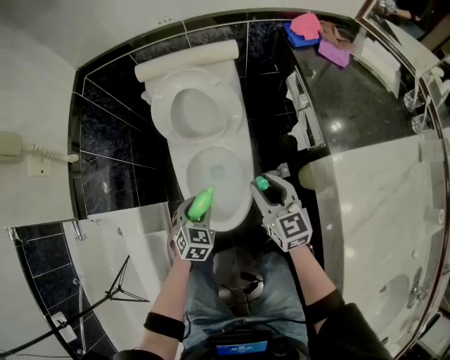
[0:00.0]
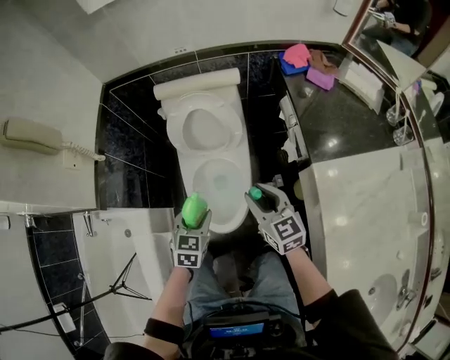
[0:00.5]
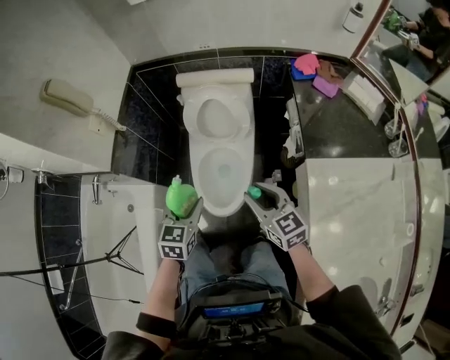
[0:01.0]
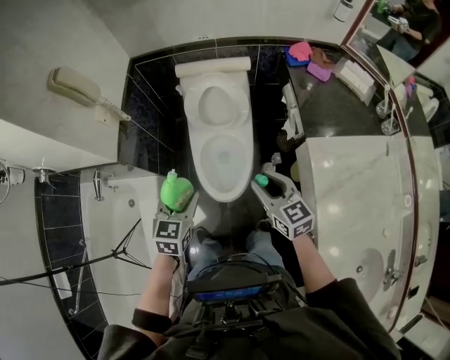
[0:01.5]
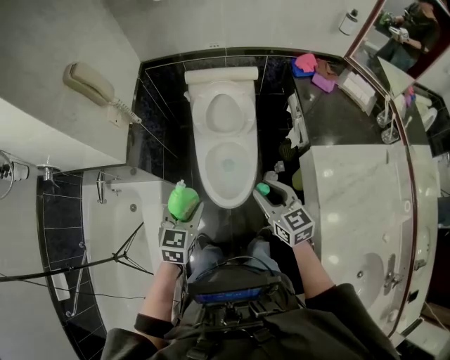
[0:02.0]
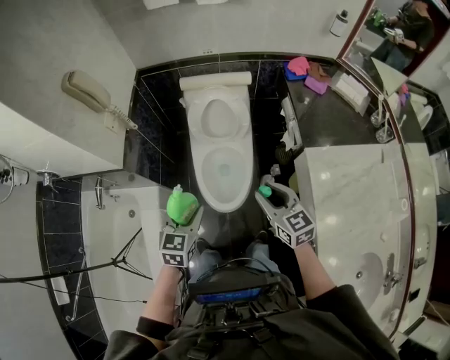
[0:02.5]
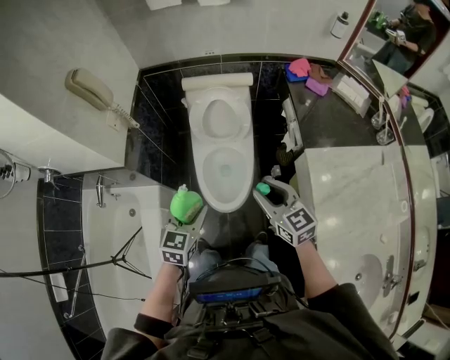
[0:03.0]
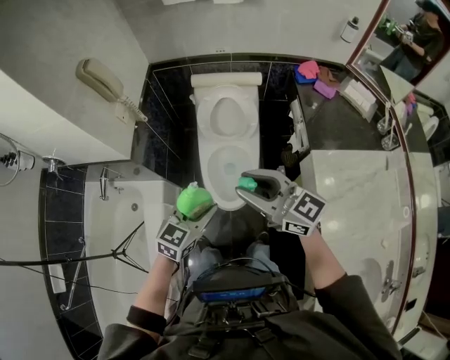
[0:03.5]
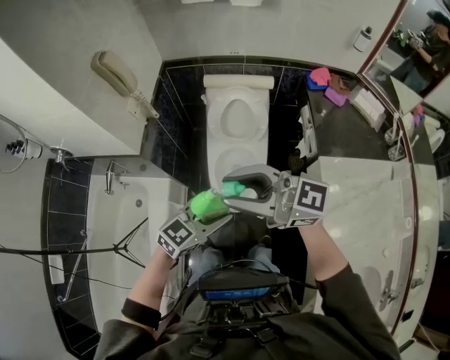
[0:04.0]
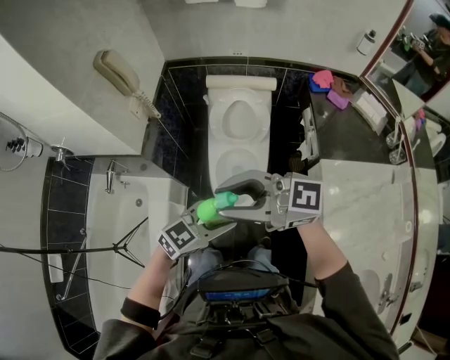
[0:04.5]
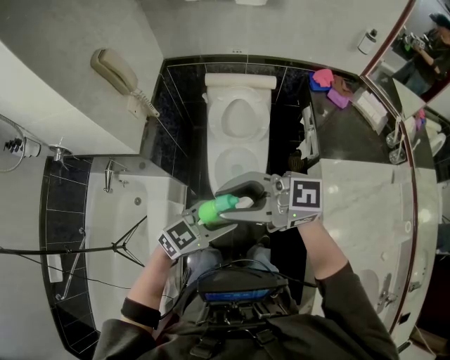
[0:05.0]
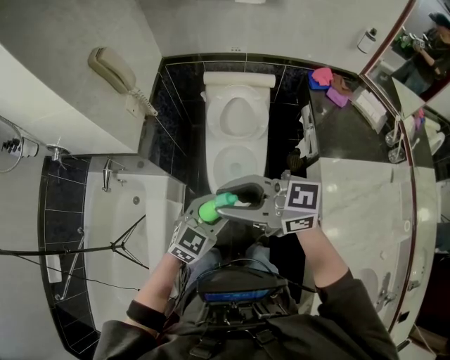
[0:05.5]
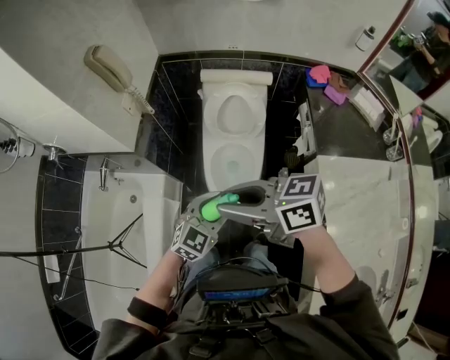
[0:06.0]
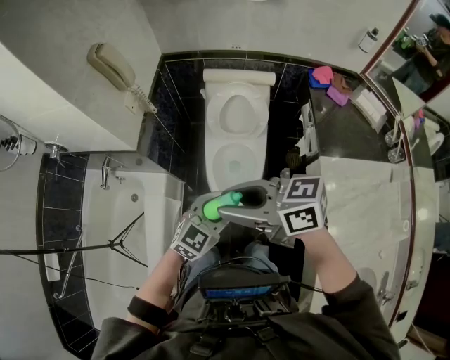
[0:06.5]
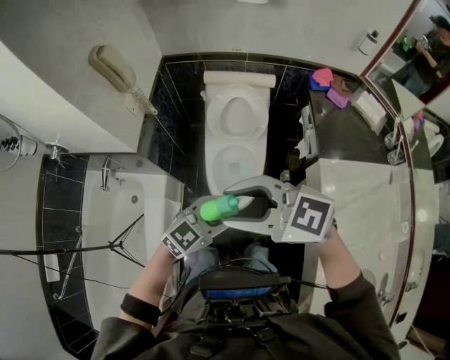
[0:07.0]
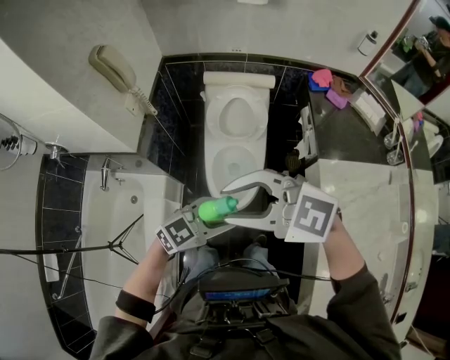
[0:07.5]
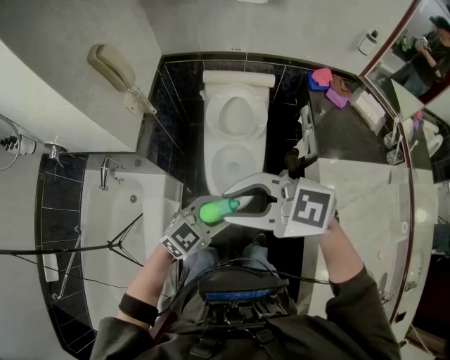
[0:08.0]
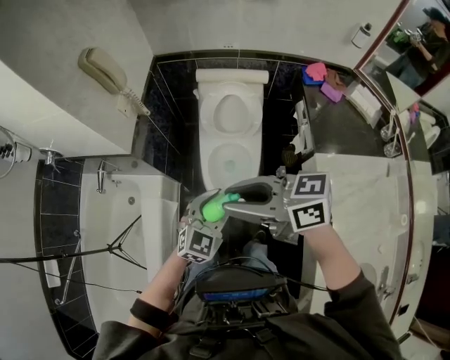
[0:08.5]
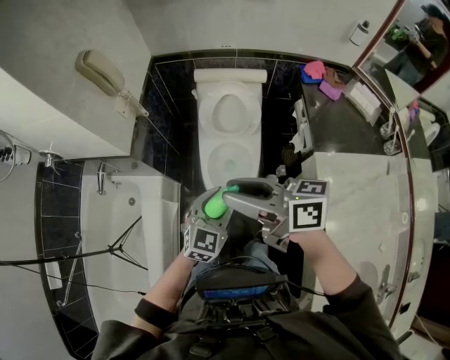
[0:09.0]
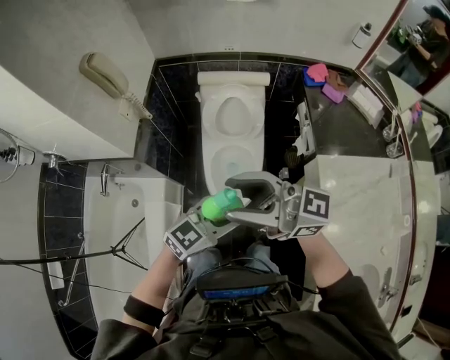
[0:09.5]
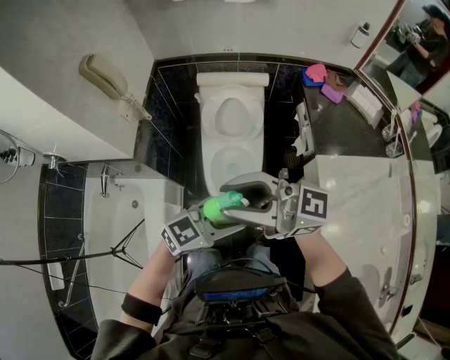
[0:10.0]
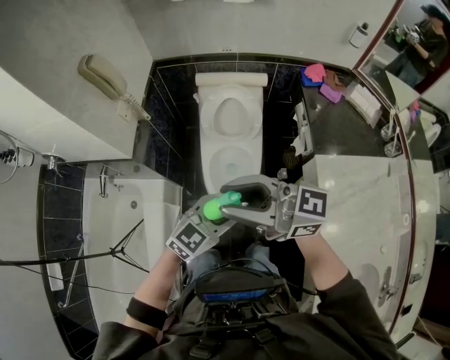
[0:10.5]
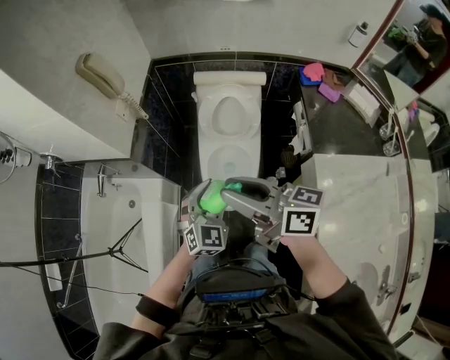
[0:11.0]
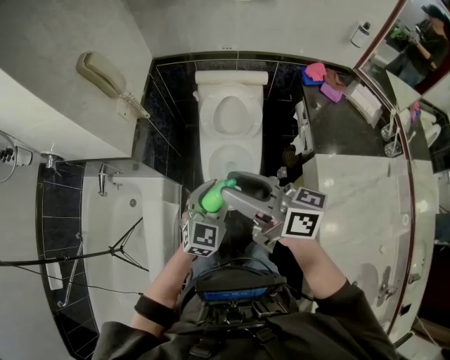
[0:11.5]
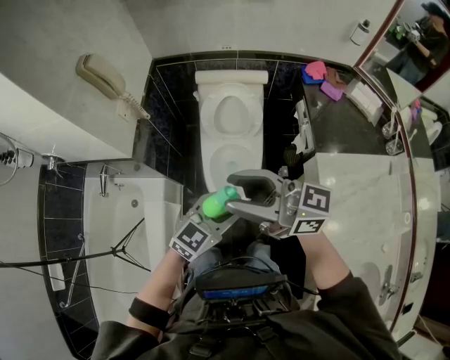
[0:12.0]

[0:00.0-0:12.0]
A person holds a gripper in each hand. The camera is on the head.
0:00.0 to 0:02.0: The two grippers go roughly 30 cm upward and backward. The left gripper rotates about 20 degrees.
0:02.0 to 0:04.0: The right gripper is displaced upward by some 20 cm, and tilts its fingers about 30 degrees upward; the left gripper moves roughly 10 cm, and swivels approximately 30 degrees.
0:04.0 to 0:06.0: The left gripper ends up approximately 5 cm from where it was, while the right gripper moves downward, some 5 cm, and turns by roughly 40 degrees.
0:06.0 to 0:08.0: The right gripper rotates roughly 40 degrees.
0:08.0 to 0:10.0: The right gripper moves approximately 5 cm, and points its fingers roughly 40 degrees further upward. The left gripper moves roughly 5 cm.

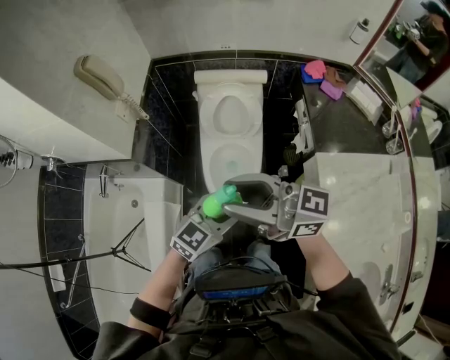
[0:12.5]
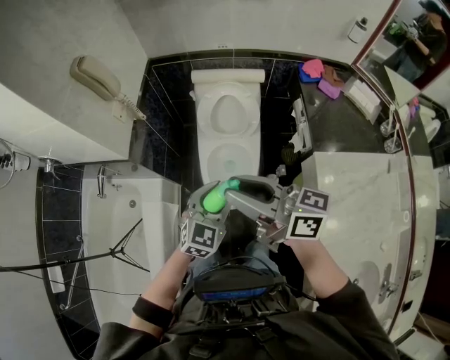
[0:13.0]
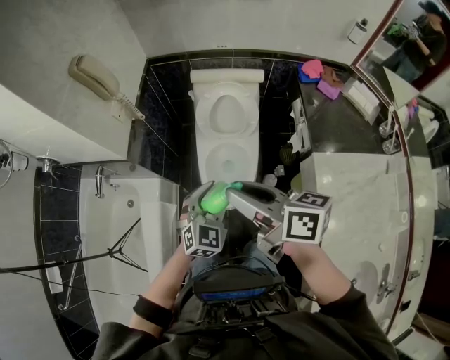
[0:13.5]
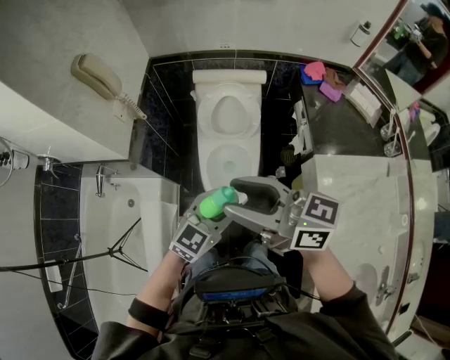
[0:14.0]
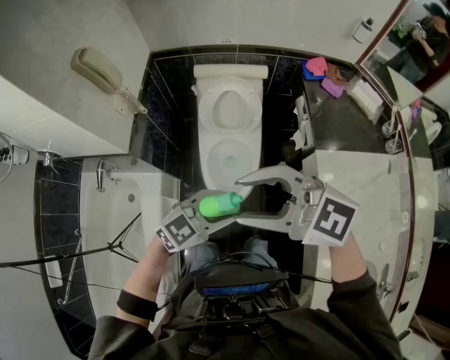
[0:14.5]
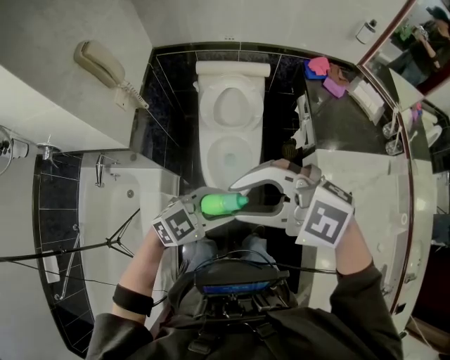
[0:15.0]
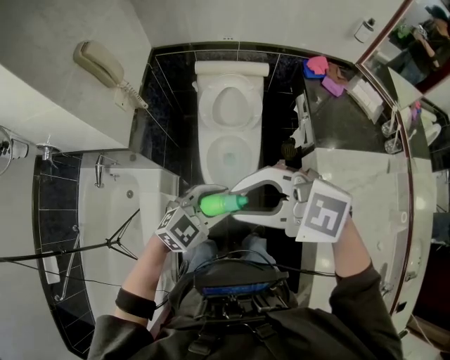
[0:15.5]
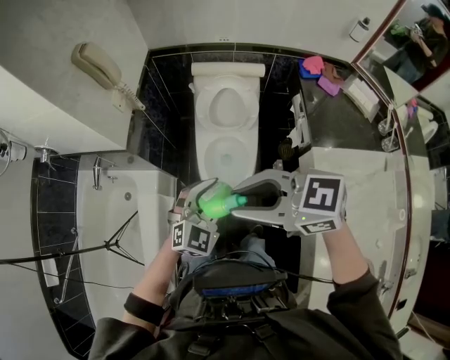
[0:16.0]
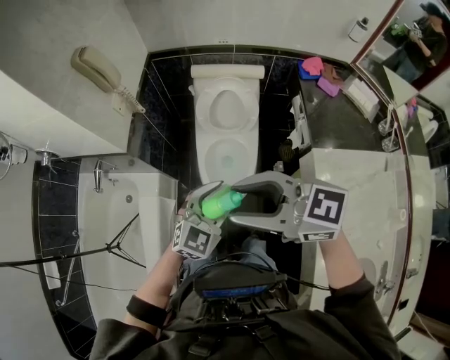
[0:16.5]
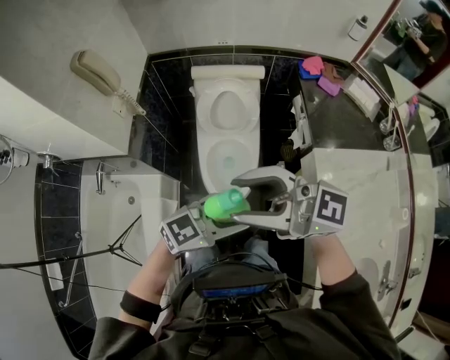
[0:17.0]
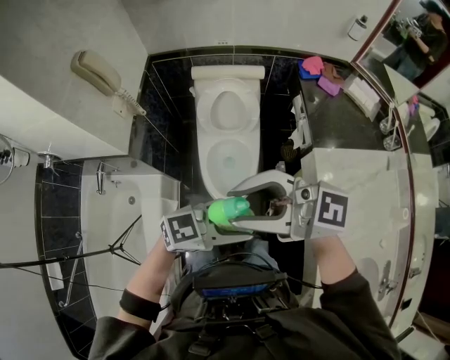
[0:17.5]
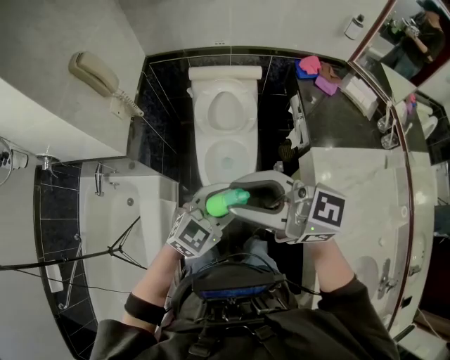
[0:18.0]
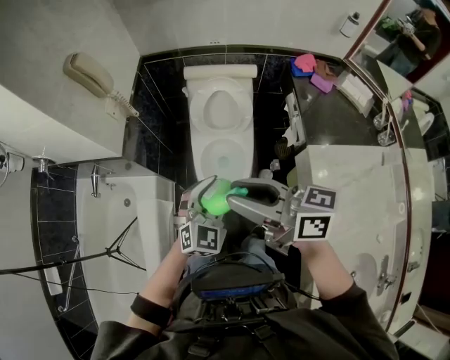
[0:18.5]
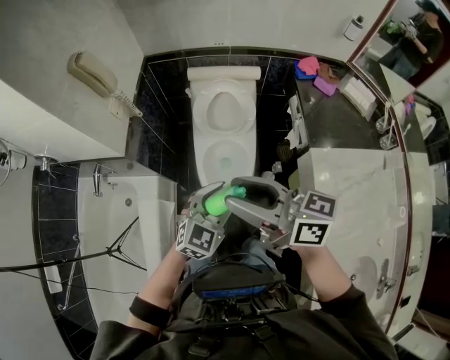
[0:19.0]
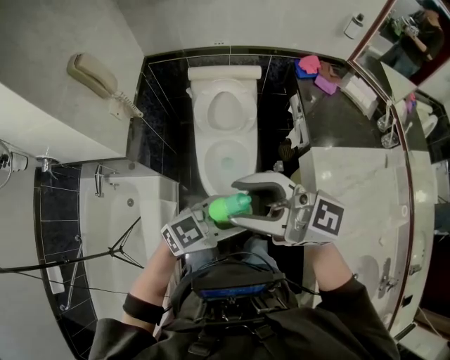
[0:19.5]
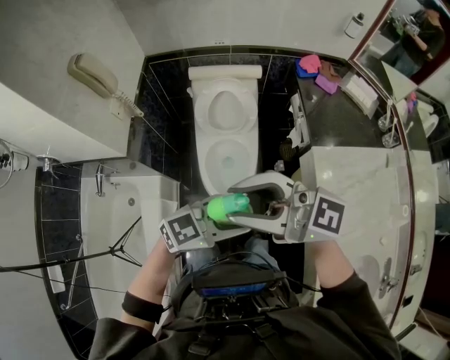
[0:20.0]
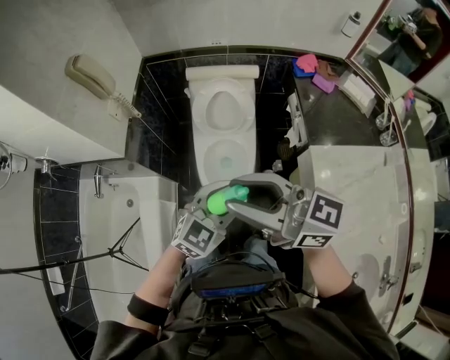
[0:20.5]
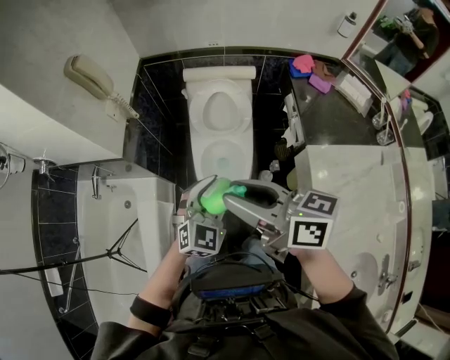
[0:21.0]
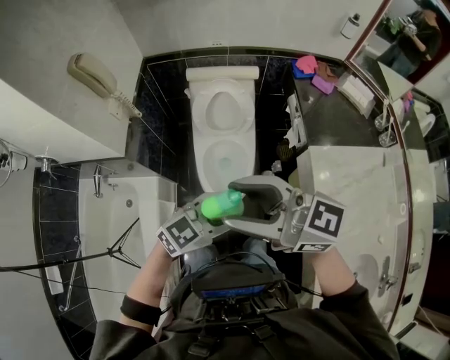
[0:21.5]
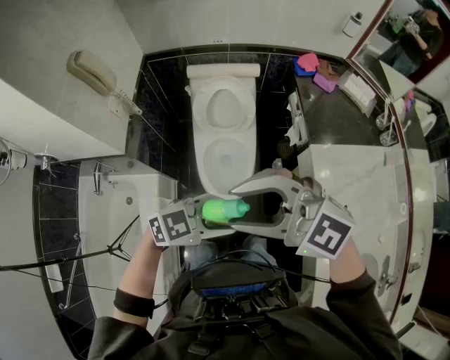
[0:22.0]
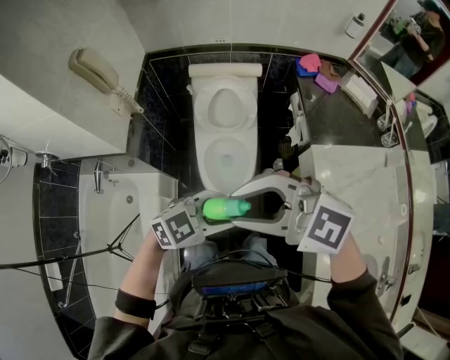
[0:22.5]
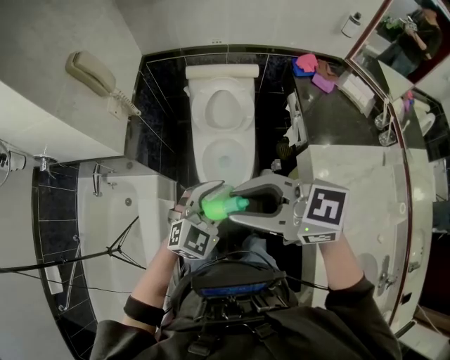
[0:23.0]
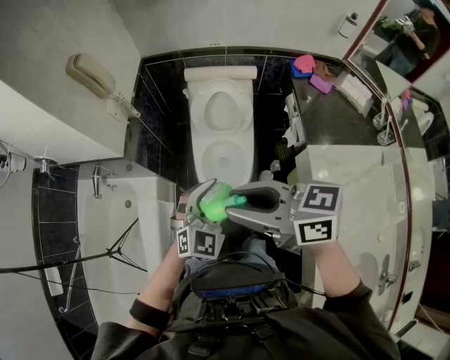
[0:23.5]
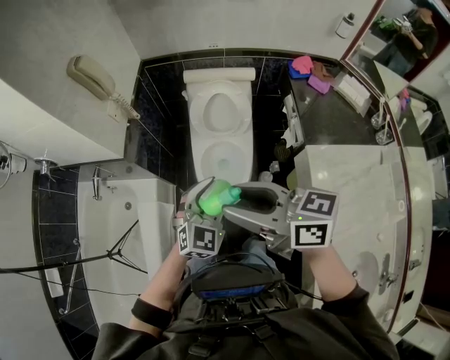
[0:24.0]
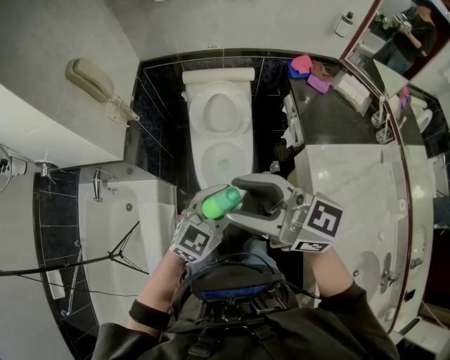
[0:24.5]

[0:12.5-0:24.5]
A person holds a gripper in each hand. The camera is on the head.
0:12.5 to 0:14.5: The right gripper swivels roughly 40 degrees.
0:14.5 to 0:16.5: The right gripper swivels about 20 degrees; the left gripper swivels about 30 degrees.
0:16.5 to 0:18.5: The left gripper reaches about 5 cm upward, then returns. The right gripper moves roughly 5 cm upward and comes back, and turns by about 30 degrees.
0:18.5 to 0:20.5: The left gripper swivels roughly 20 degrees. Meanwhile the right gripper changes its angle by approximately 20 degrees.
0:20.5 to 0:22.5: The left gripper moves about 5 cm, and turns by roughly 30 degrees. Meanwhile the right gripper changes its angle by about 50 degrees, and opens and closes again.
0:22.5 to 0:24.5: The left gripper rotates some 30 degrees, while the right gripper turns by about 40 degrees.

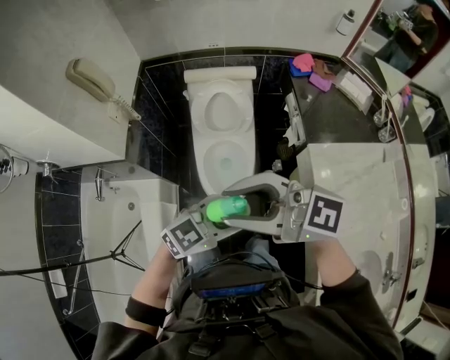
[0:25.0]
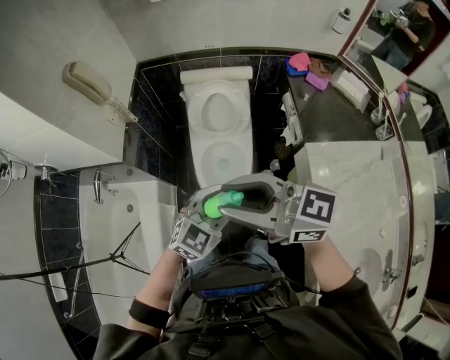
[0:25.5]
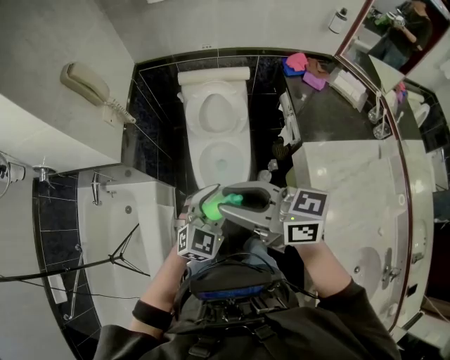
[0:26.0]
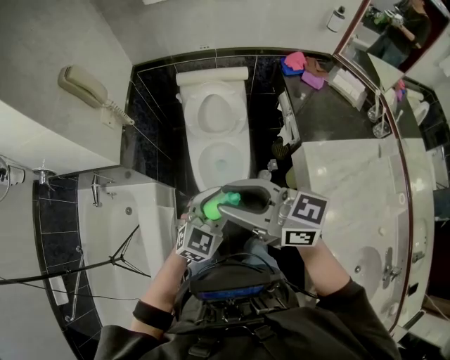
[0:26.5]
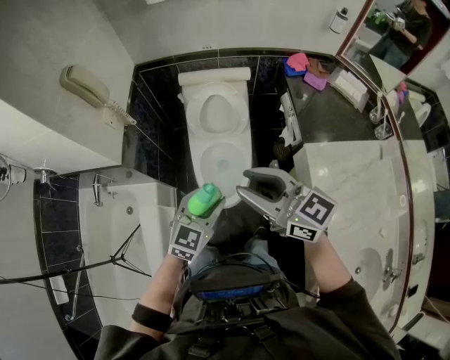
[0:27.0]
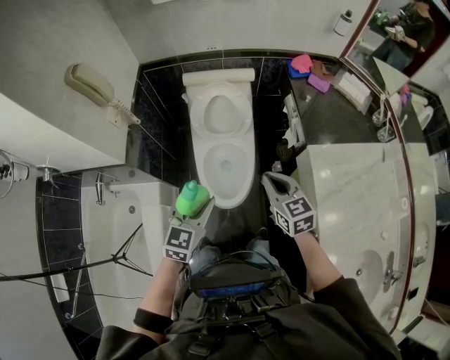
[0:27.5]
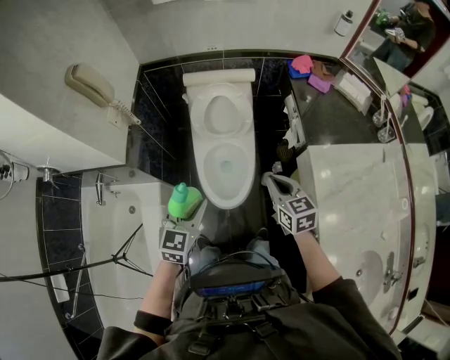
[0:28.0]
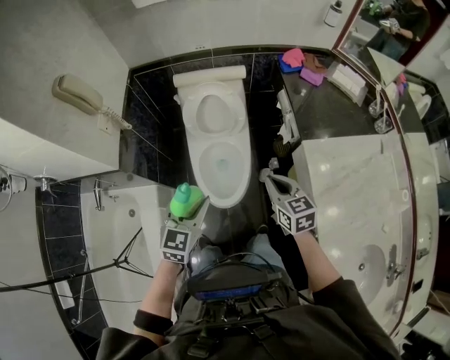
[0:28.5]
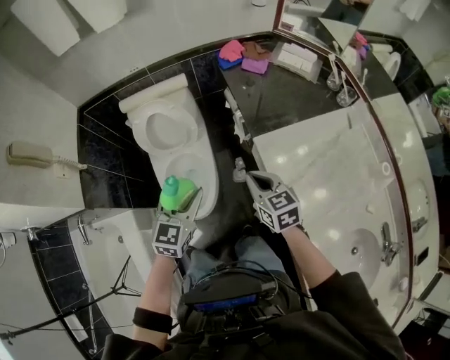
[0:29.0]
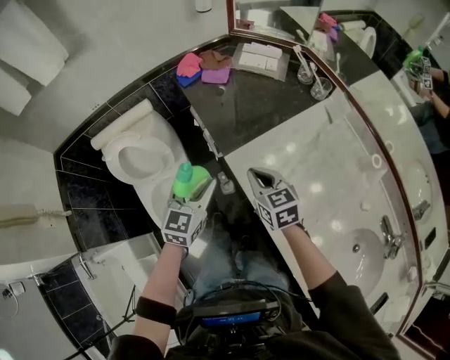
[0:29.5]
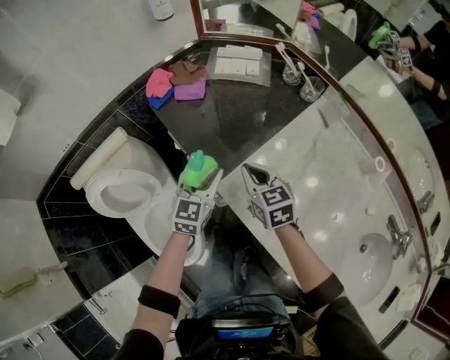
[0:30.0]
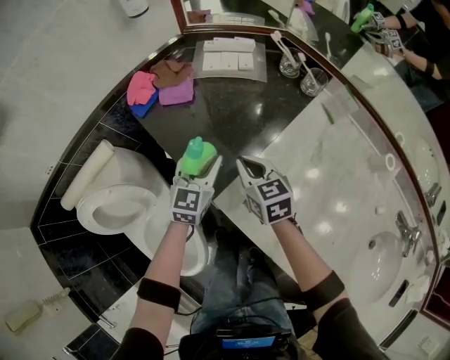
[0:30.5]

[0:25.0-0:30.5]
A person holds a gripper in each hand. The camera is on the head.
0:25.0 to 0:27.0: The left gripper moves some 10 cm, and swivels some 40 degrees. The right gripper travels downward by roughly 10 cm, and turns by about 30 degrees.
0:27.0 to 0:28.5: The right gripper travels downward and to the right by some 20 cm, swivels about 40 degrees, and closes up.
0:28.5 to 0:30.5: The pair of grippers is taken approximately 50 cm. The left gripper changes its angle by roughly 40 degrees, while the right gripper changes its angle by some 30 degrees.
